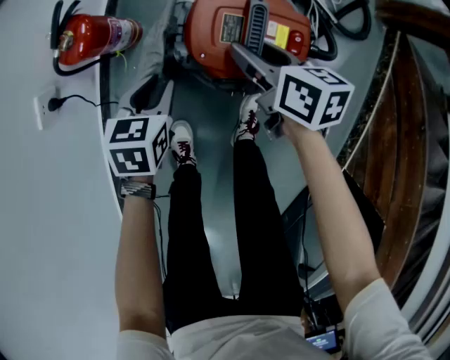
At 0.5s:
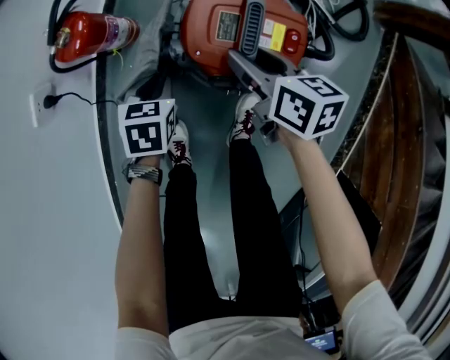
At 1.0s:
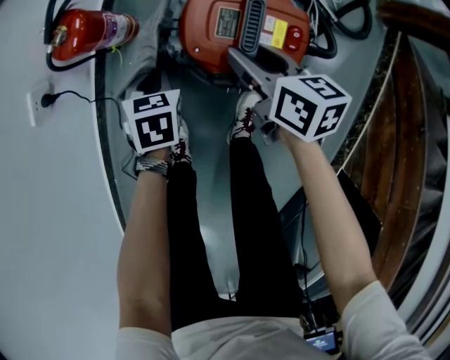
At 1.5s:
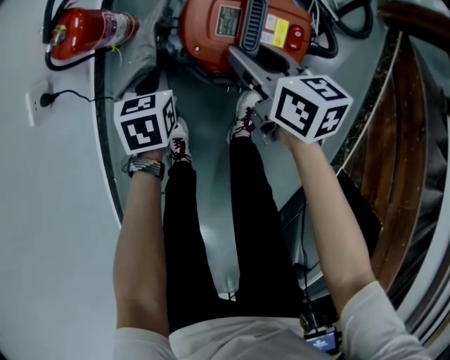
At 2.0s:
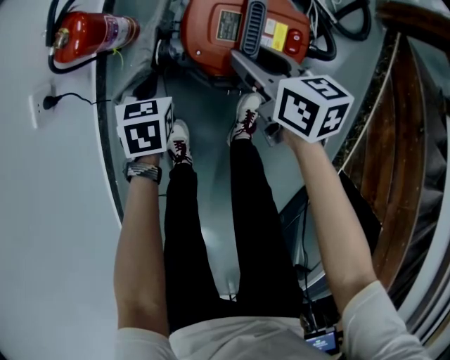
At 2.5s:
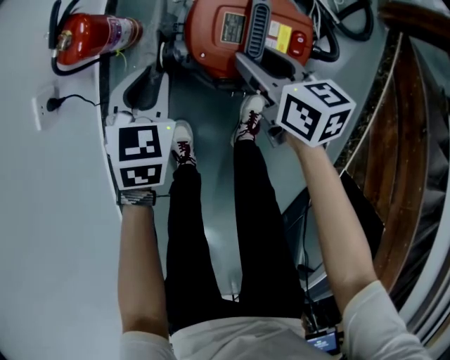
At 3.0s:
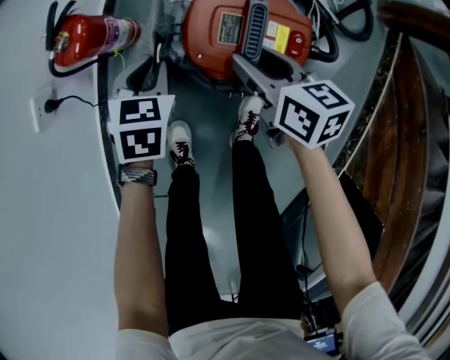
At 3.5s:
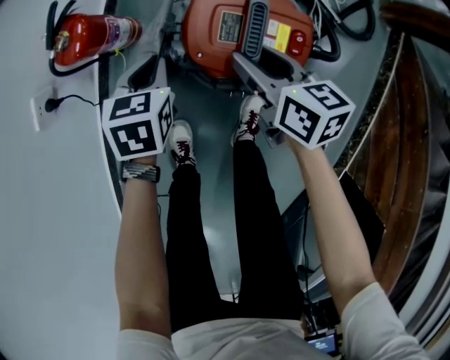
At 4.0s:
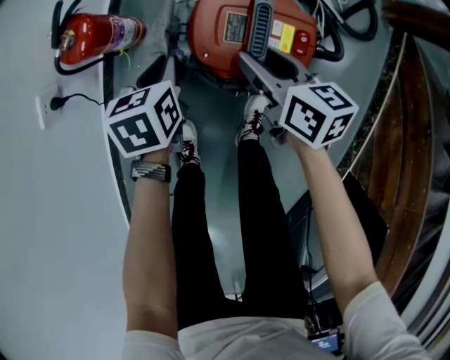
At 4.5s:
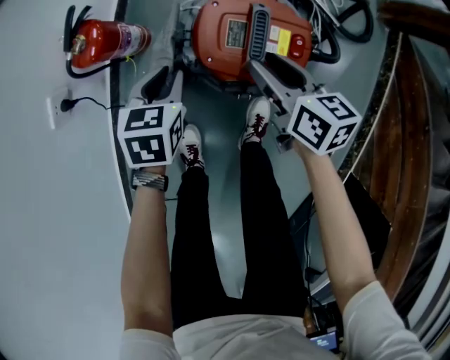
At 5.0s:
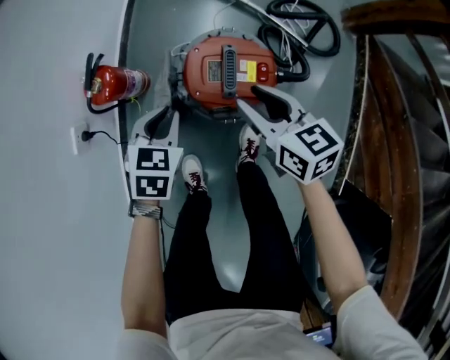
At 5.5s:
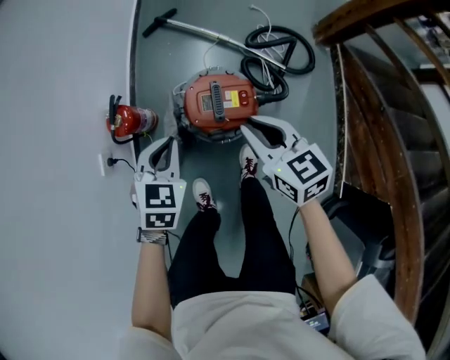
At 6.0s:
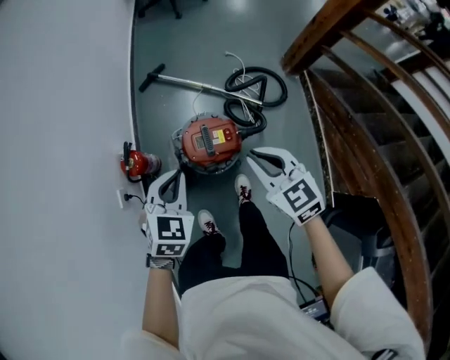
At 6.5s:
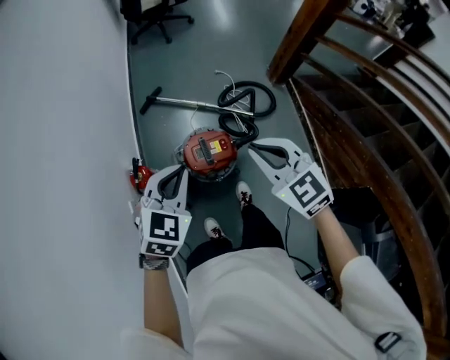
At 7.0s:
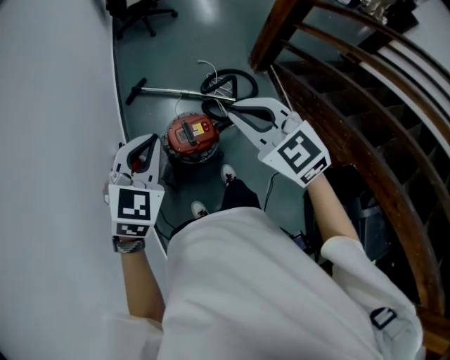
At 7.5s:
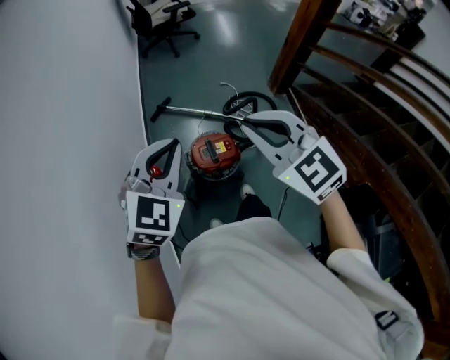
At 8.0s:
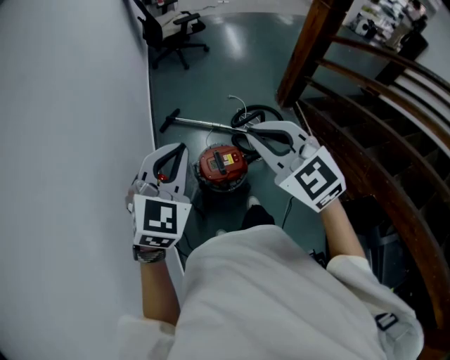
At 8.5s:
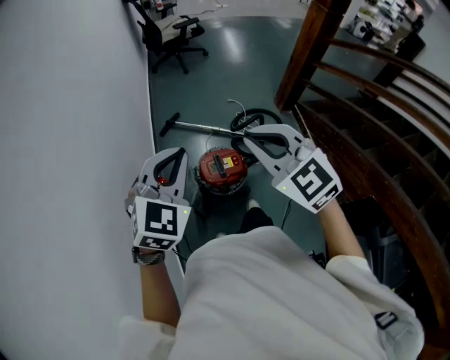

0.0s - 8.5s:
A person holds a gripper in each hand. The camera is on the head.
0.0s - 2.0s: The left gripper moves roughly 5 cm, and closes its fingers.
2.0s - 4.0s: The left gripper shifts by approximately 5 cm.
4.0s - 6.5s: Both grippers travel together upward, approximately 50 cm. The right gripper twists approximately 50 degrees counterclockwise, seen from behind, and closes, while the left gripper rolls clockwise, seen from behind, by about 60 degrees.
6.5s - 8.5s: Both grippers travel together upward, approximately 15 cm.

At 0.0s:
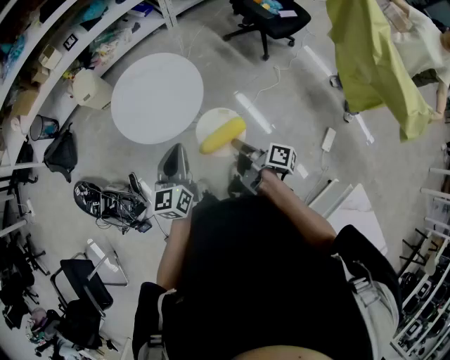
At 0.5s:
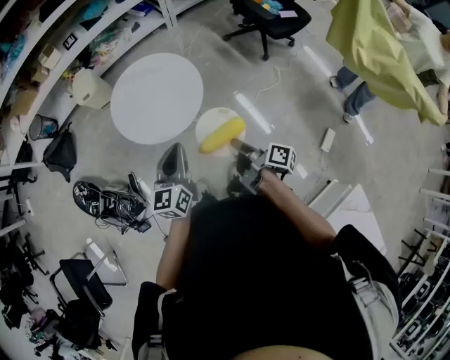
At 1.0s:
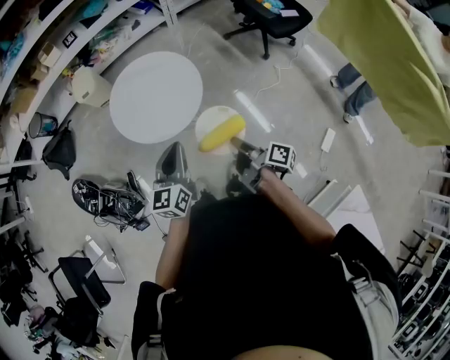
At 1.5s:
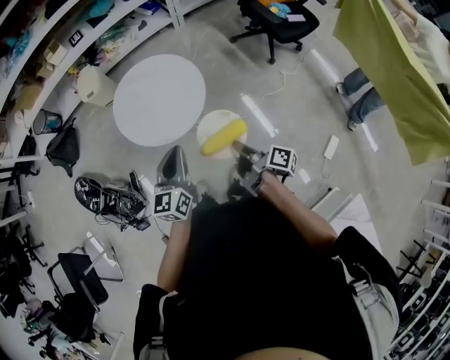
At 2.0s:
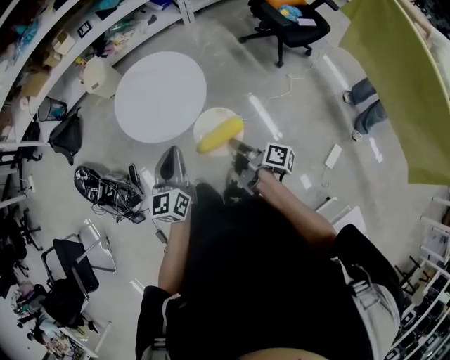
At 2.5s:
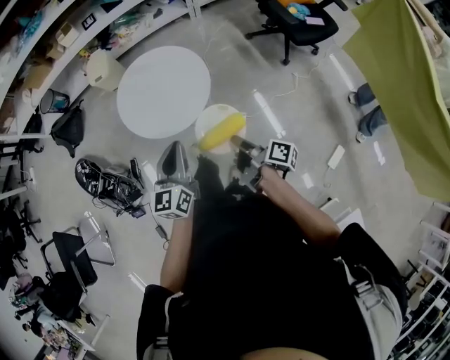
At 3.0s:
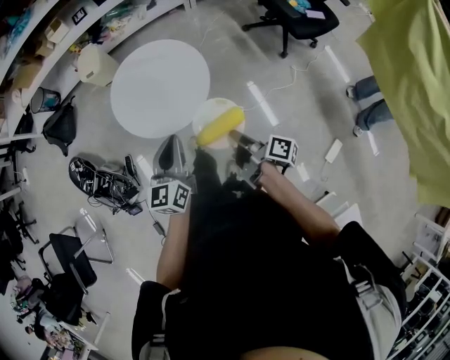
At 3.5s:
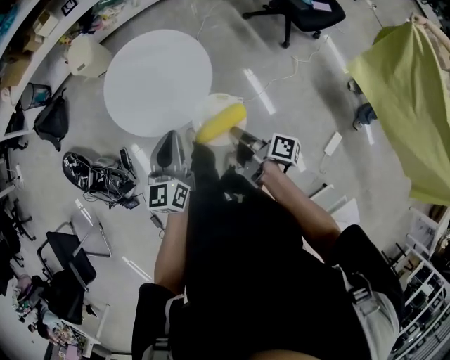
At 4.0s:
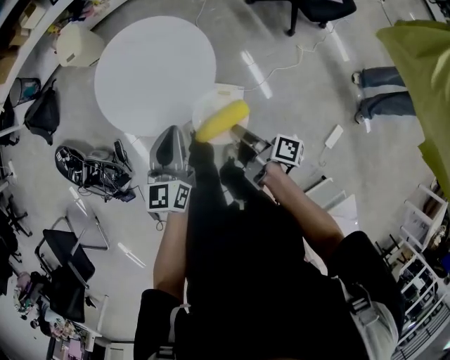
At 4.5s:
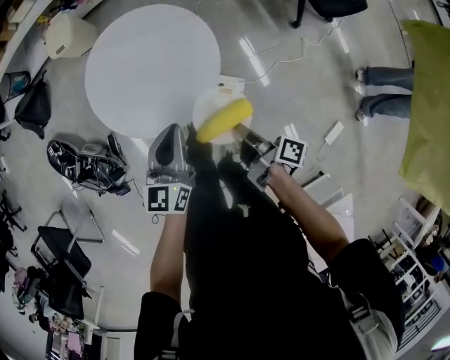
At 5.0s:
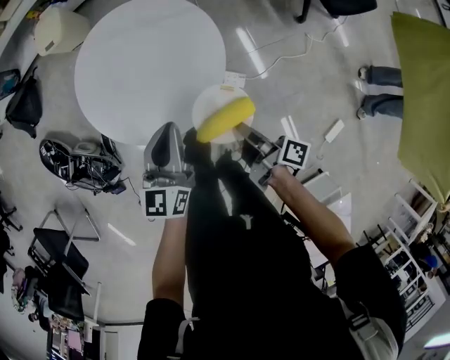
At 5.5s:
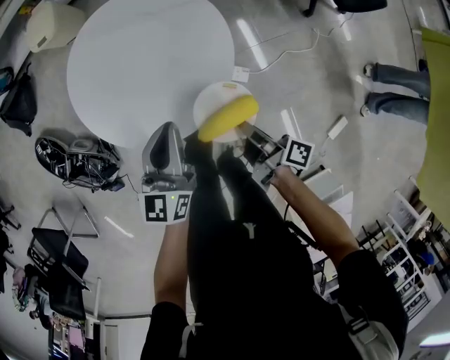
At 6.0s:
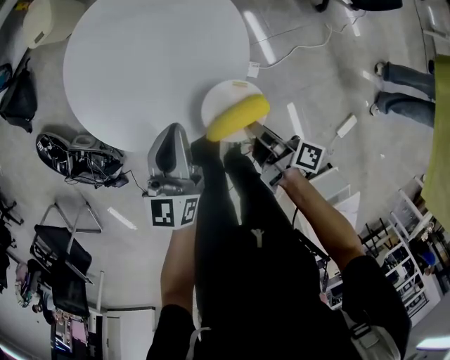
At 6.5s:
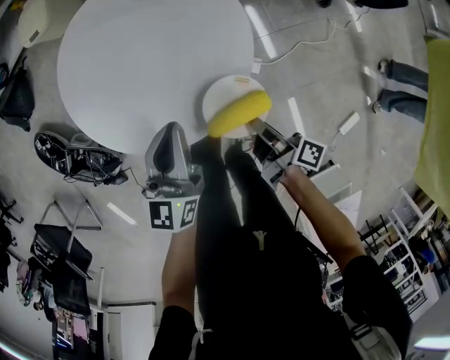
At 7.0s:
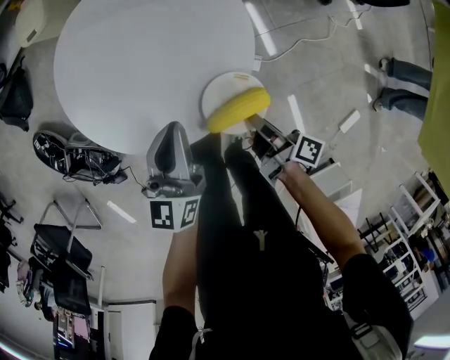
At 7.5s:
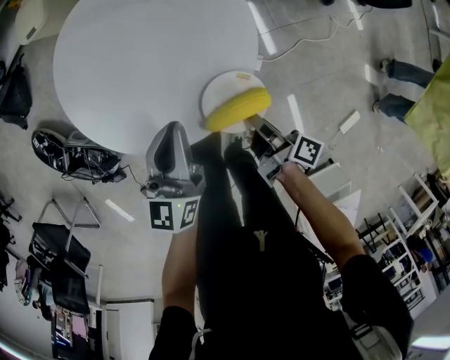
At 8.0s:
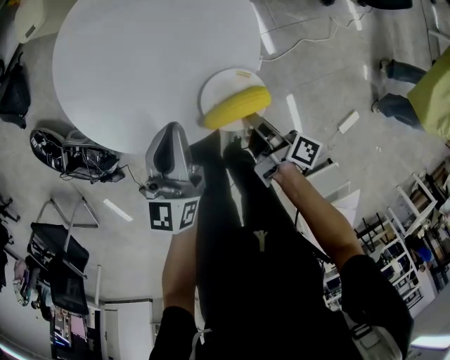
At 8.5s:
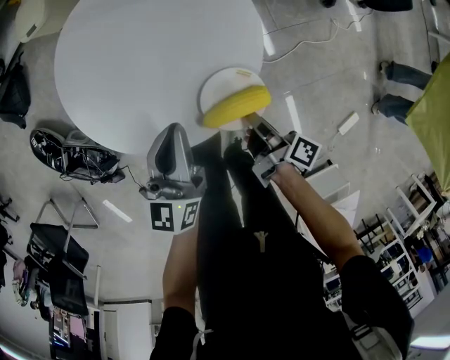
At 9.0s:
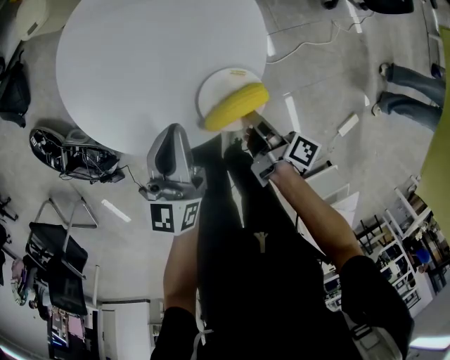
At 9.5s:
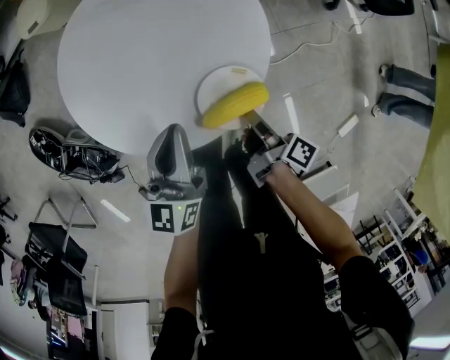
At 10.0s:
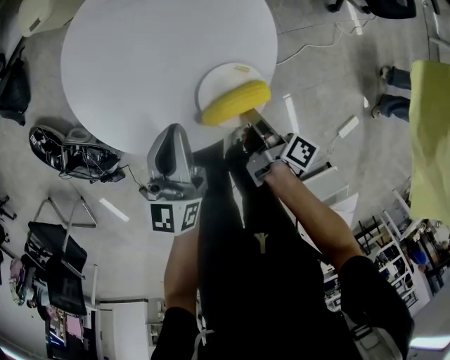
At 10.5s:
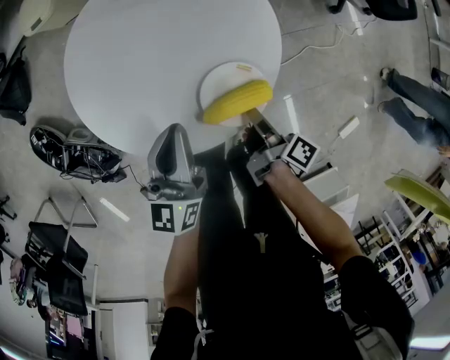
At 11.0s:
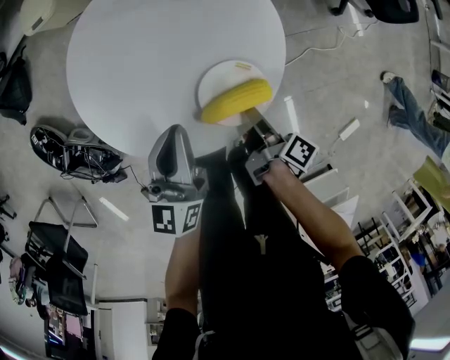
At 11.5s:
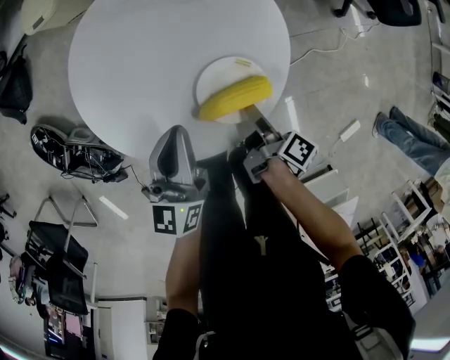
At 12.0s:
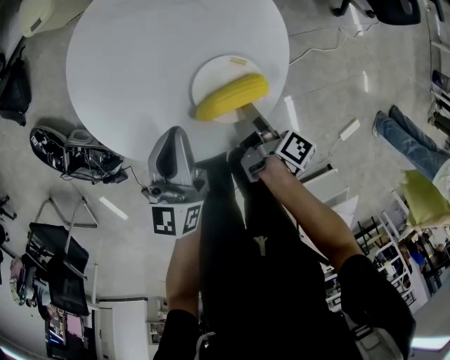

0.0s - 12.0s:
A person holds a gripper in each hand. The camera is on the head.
2.0s - 4.0s: The left gripper changes place by roughly 15 cm.
4.0s - 6.0s: The left gripper goes some 15 cm downward.

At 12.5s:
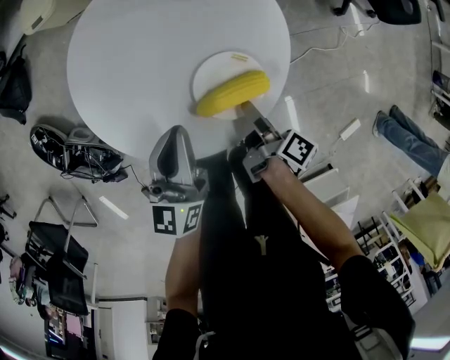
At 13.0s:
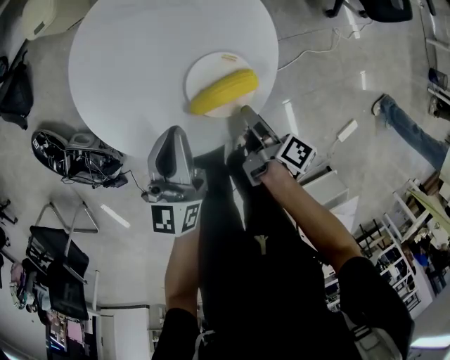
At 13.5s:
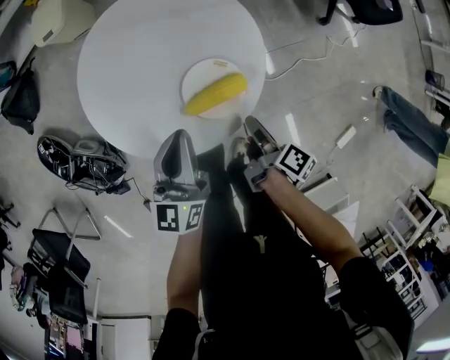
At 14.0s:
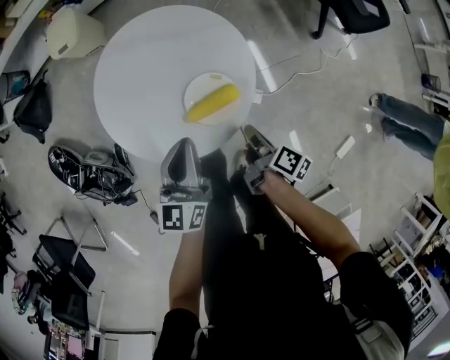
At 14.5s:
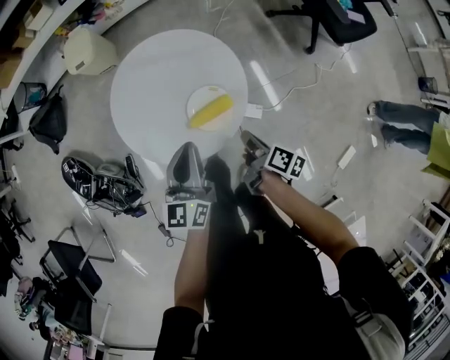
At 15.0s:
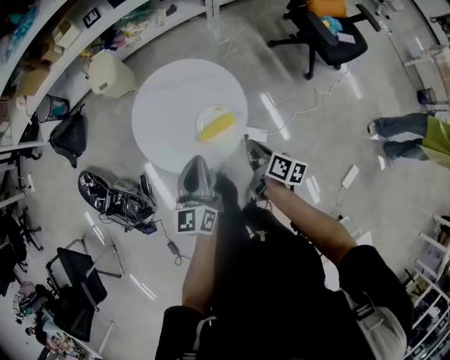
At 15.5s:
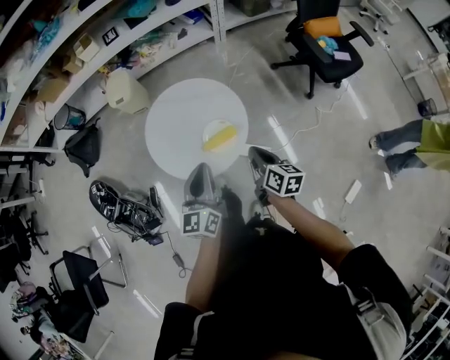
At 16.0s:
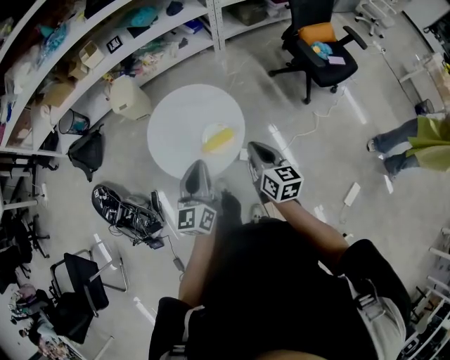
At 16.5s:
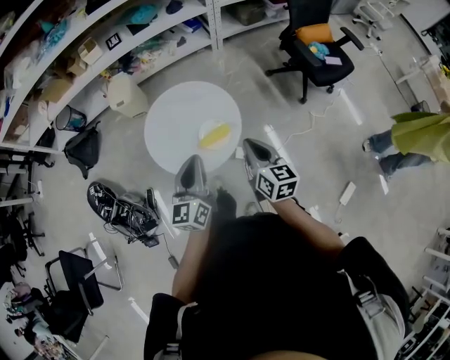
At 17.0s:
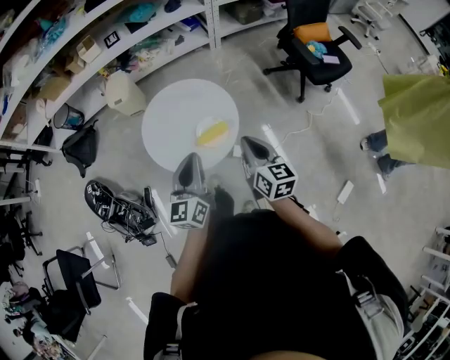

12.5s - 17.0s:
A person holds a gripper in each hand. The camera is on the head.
12.5s - 14.5s: The left gripper moves upward, some 10 cm.
14.5s - 17.0s: The left gripper moves upward, about 15 cm.

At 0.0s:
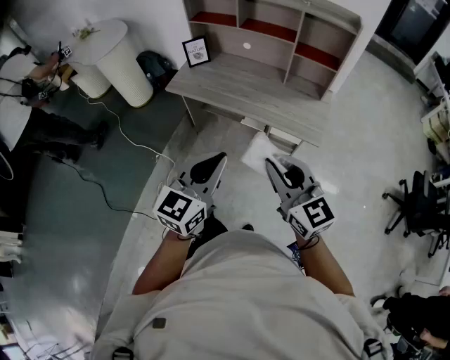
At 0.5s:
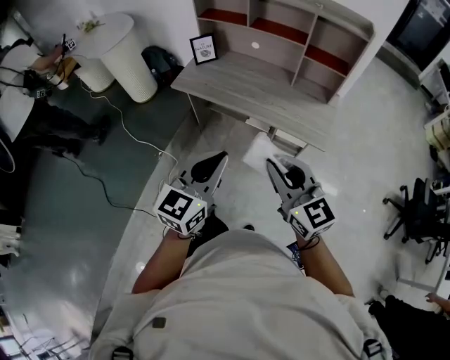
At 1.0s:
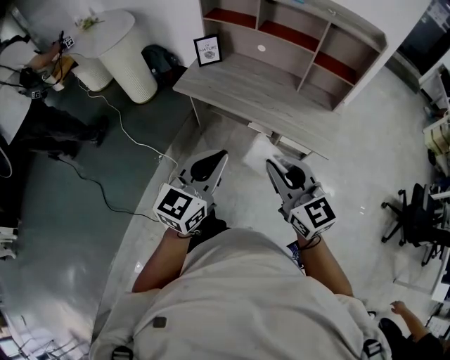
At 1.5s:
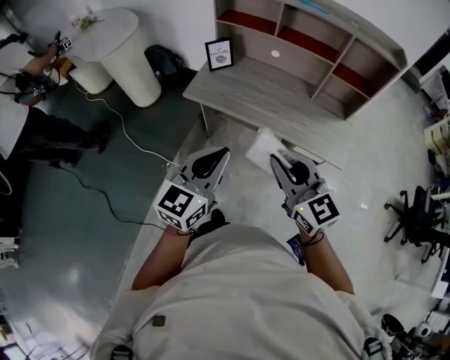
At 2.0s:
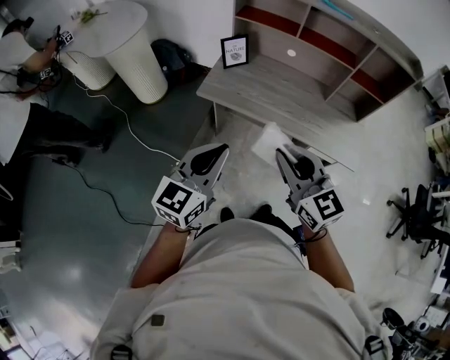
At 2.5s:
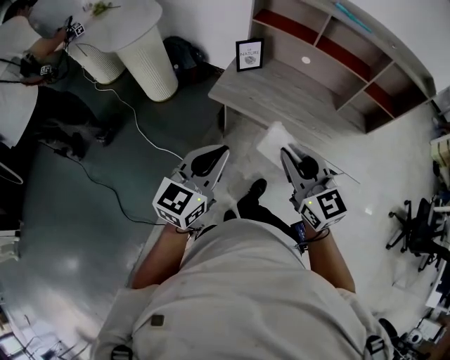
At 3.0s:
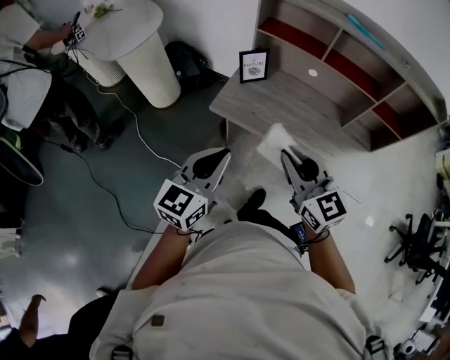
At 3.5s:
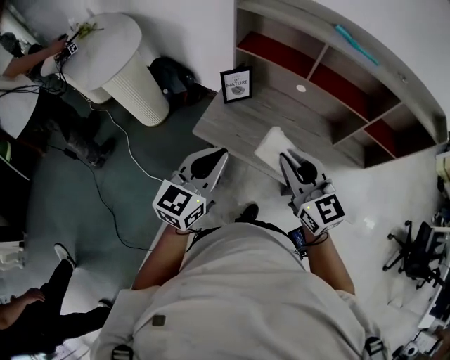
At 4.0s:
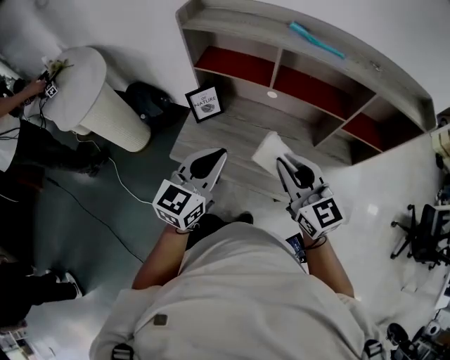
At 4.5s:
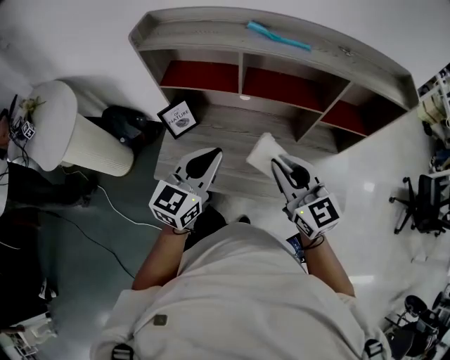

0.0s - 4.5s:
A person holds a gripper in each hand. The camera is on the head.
0.0s - 2.0s: Both grippers travel together to the left and forward, approximately 35 cm.
2.0s - 4.5s: Both grippers travel together forward and to the right, roughly 40 cm.
